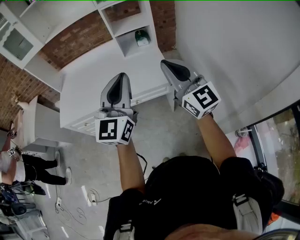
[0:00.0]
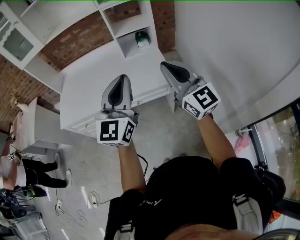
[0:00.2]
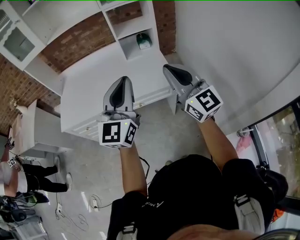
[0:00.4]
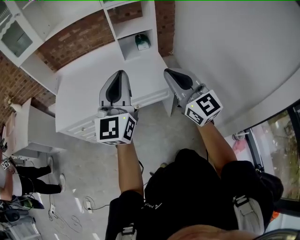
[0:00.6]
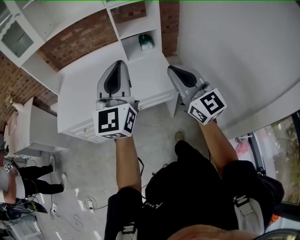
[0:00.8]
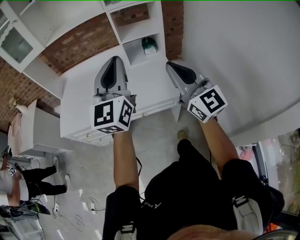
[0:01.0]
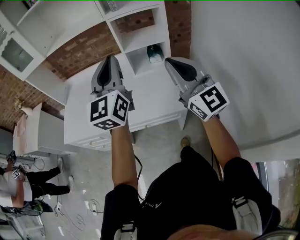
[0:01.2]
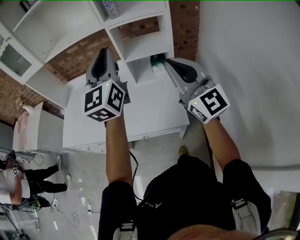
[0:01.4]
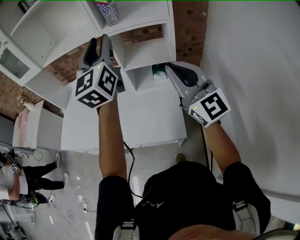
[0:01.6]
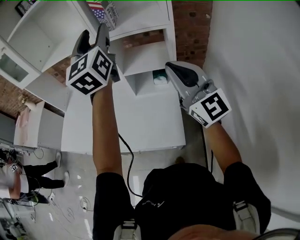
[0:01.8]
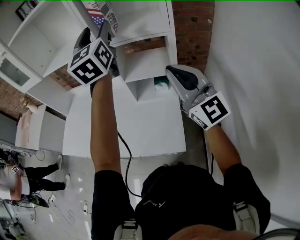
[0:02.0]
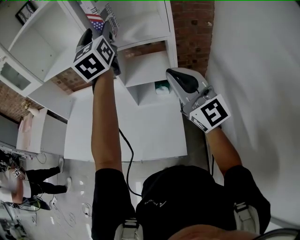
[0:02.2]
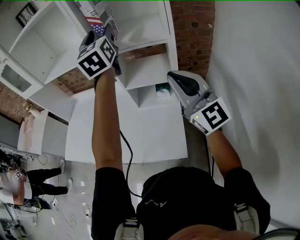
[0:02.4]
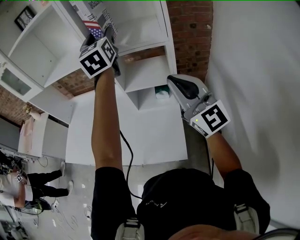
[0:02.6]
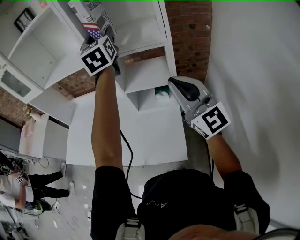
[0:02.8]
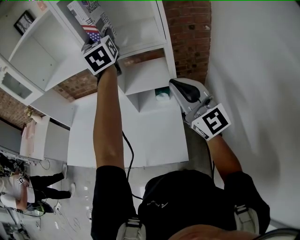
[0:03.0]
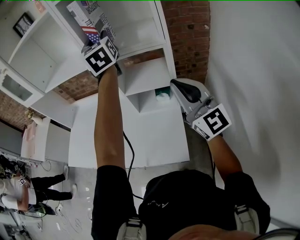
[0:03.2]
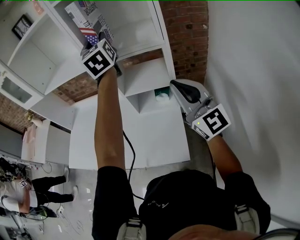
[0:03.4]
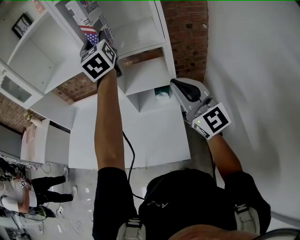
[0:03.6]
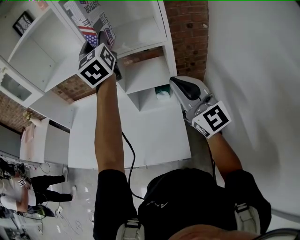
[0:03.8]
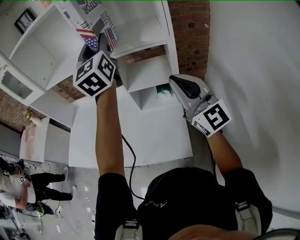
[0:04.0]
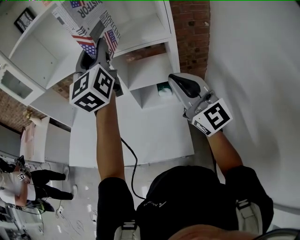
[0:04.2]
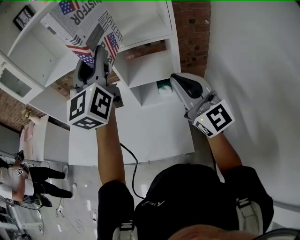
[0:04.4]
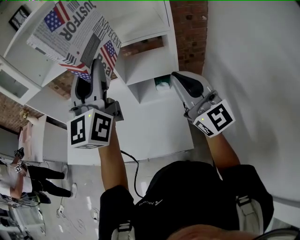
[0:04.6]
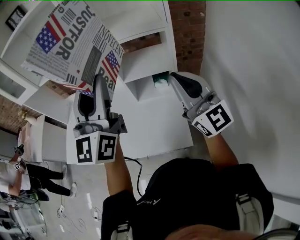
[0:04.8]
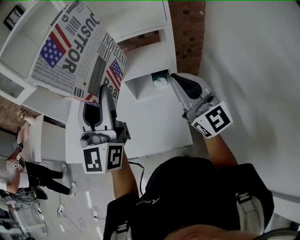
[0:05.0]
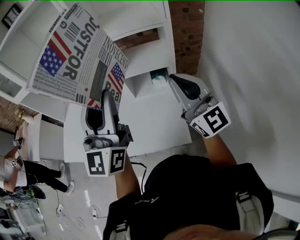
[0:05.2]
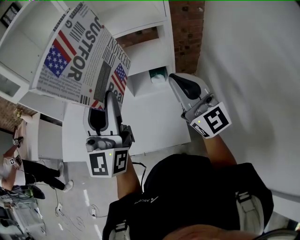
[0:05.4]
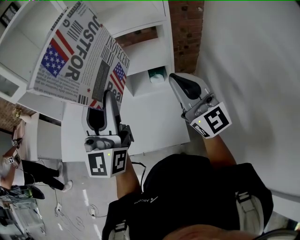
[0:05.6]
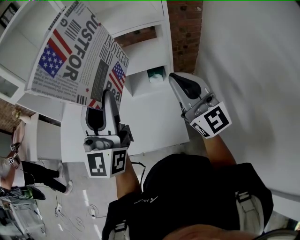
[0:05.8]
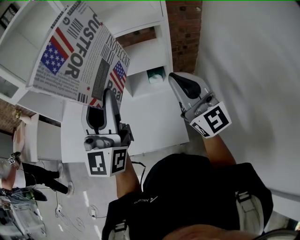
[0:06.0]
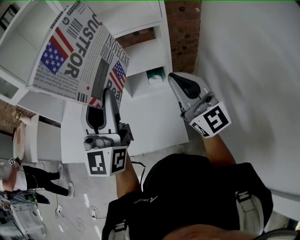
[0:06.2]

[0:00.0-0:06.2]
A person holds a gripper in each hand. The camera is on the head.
0:00.0 to 0:01.6: The grippers both shift forward by roughly 40 cm. The left gripper rotates approximately 20 degrees, and opens.
0:01.6 to 0:03.2: The right gripper goes approximately 10 cm to the right and forward. The left gripper goes roughly 20 cm forward and to the right, and opens, then closes again.
0:03.2 to 0:04.6: The left gripper travels backward by some 20 cm, and turns by about 30 degrees.
0:04.6 to 0:06.2: The left gripper moves downward and backward, some 10 cm.

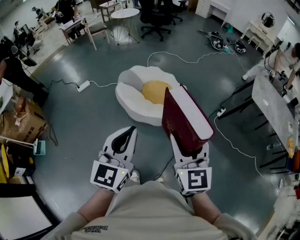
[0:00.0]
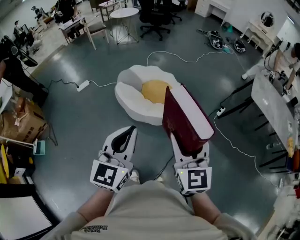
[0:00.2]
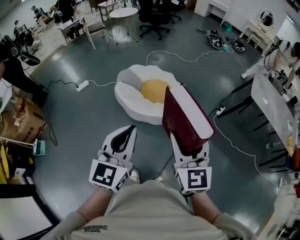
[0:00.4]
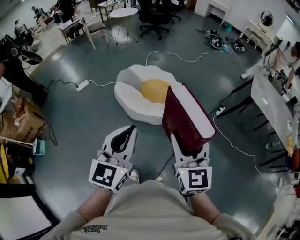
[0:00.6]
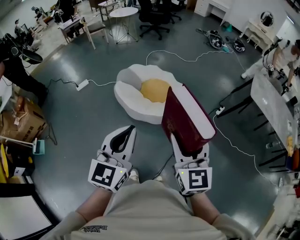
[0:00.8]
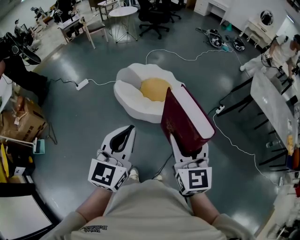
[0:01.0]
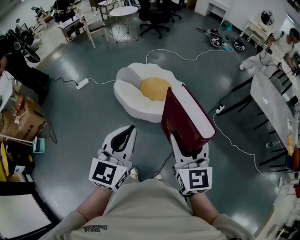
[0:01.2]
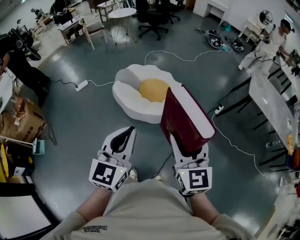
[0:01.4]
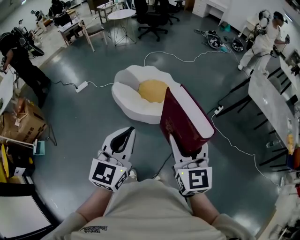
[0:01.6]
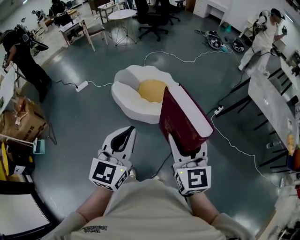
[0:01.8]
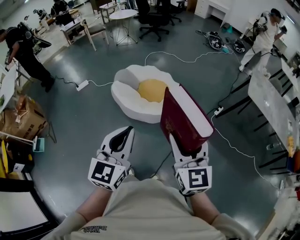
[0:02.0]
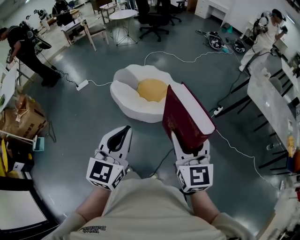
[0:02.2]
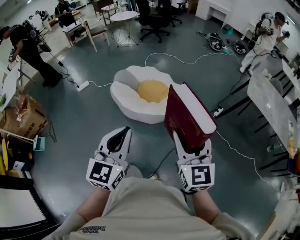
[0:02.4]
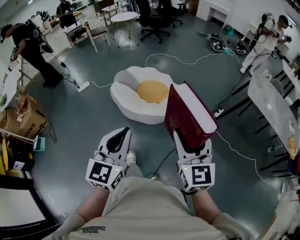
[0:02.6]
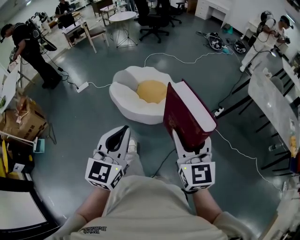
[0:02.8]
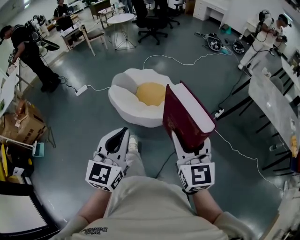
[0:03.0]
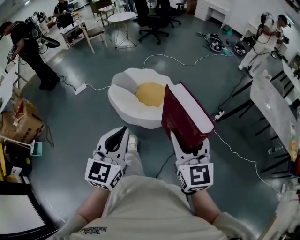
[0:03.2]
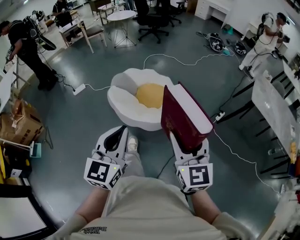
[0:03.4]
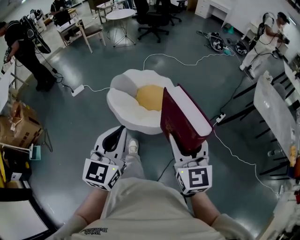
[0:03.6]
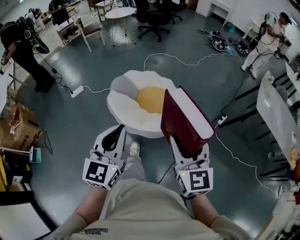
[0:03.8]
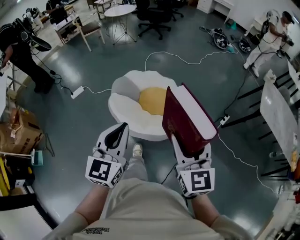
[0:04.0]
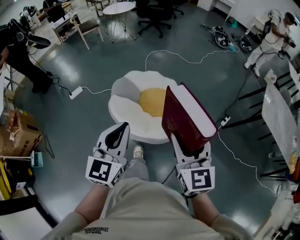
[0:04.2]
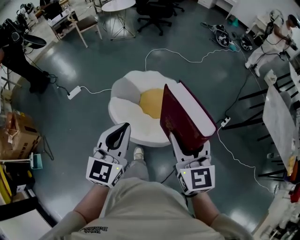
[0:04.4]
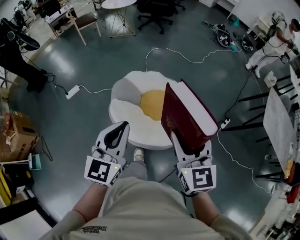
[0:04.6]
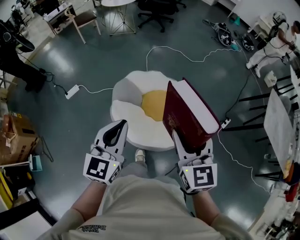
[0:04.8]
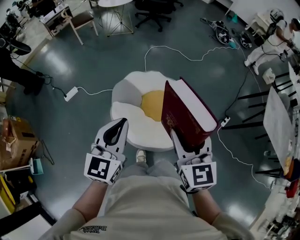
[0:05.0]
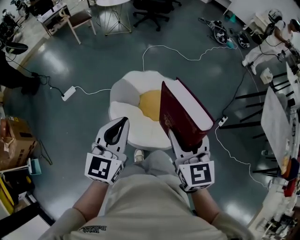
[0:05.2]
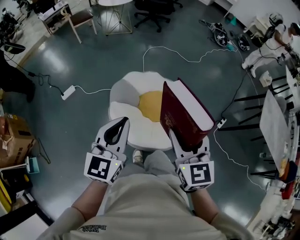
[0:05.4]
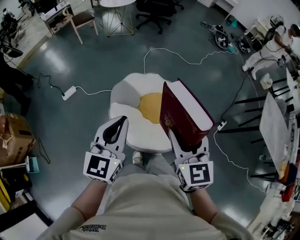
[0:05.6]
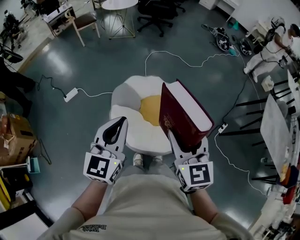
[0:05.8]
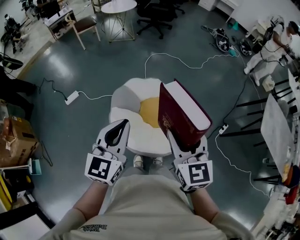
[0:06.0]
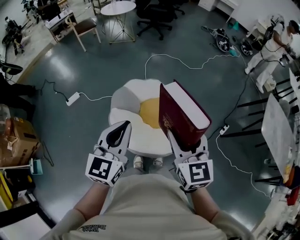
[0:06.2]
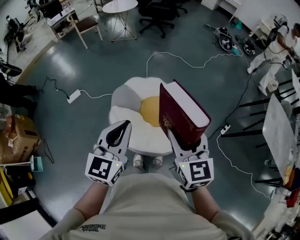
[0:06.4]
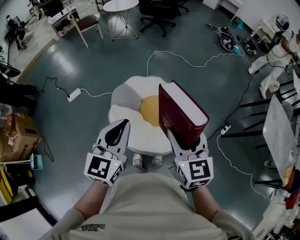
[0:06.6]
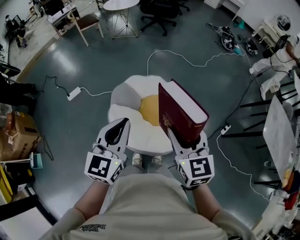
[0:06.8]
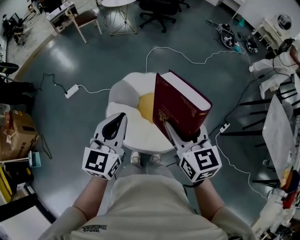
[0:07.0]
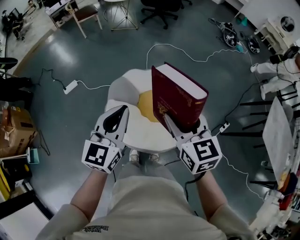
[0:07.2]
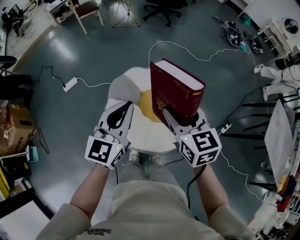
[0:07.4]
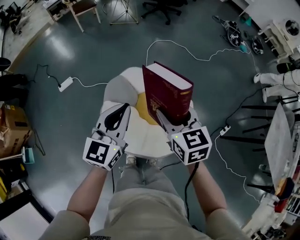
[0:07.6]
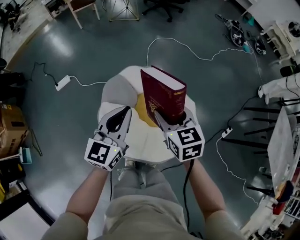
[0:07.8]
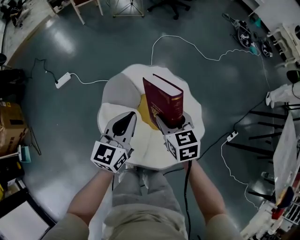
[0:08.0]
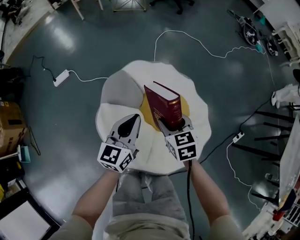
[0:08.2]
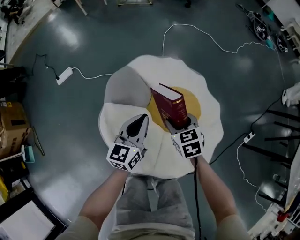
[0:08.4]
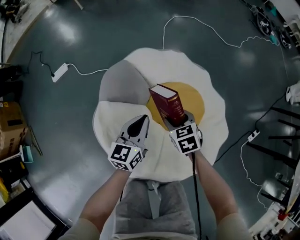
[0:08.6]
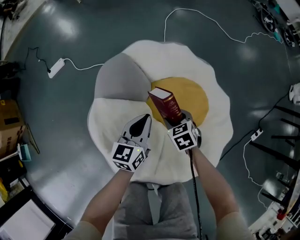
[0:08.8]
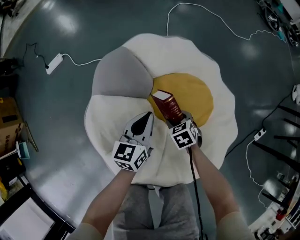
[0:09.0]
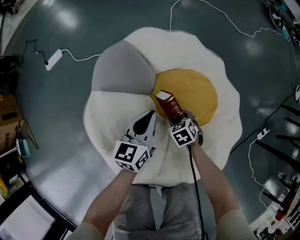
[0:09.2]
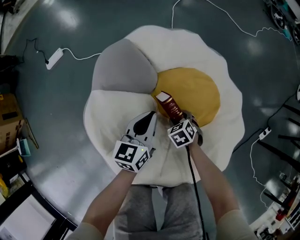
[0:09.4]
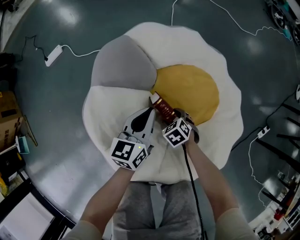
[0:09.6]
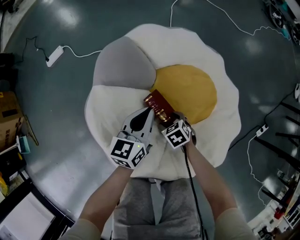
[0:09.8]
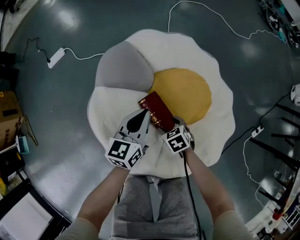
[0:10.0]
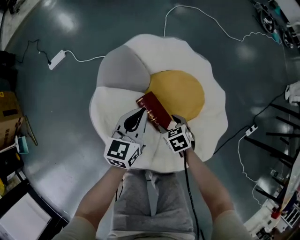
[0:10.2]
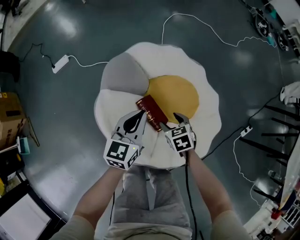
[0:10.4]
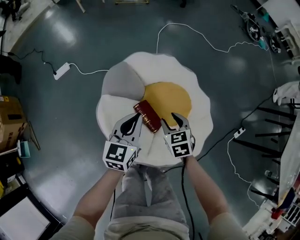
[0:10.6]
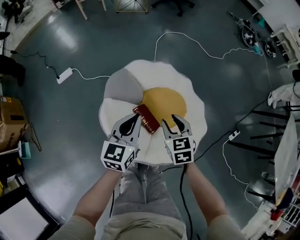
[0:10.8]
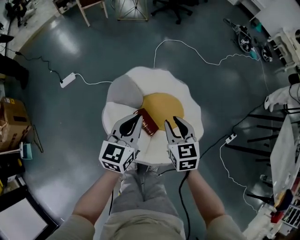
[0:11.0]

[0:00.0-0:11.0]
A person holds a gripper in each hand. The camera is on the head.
0:00.0 to 0:01.6: The right gripper shifts by approximately 5 cm.
0:01.6 to 0:03.2: The left gripper changes place by approximately 5 cm. Meanwhile the right gripper shifts by some 10 cm.
0:03.2 to 0:04.8: Both grippers are carried forward and to the left, roughly 50 cm.
0:04.8 to 0:06.2: The left gripper ends up roughly 5 cm from where it was.
0:06.2 to 0:07.8: Both grippers move downward and forward, about 25 cm. The right gripper turns by roughly 20 degrees.
0:07.8 to 0:09.4: The grippers both shift downward by about 60 cm. The left gripper turns by approximately 20 degrees. The right gripper tips its fingers downward by approximately 40 degrees.
0:09.4 to 0:11.0: Both grippers travel together upward, approximately 50 cm. The right gripper angles its fingers upward, by some 40 degrees, and closes its fingers.

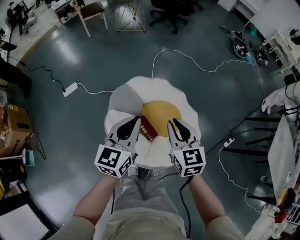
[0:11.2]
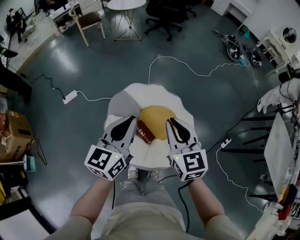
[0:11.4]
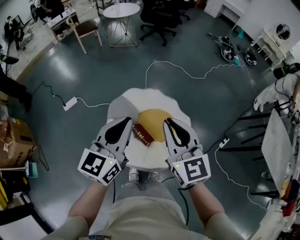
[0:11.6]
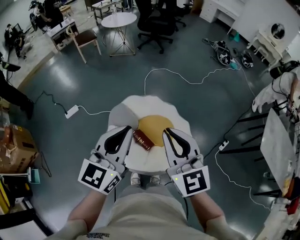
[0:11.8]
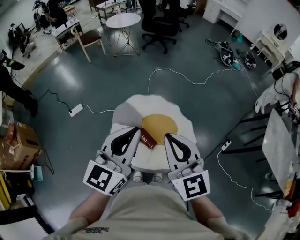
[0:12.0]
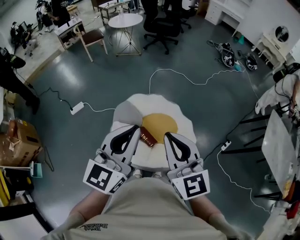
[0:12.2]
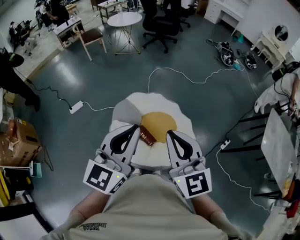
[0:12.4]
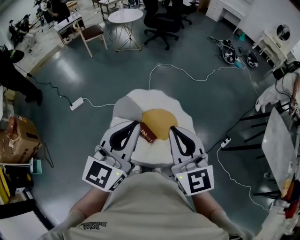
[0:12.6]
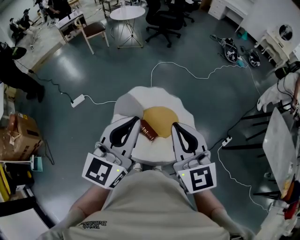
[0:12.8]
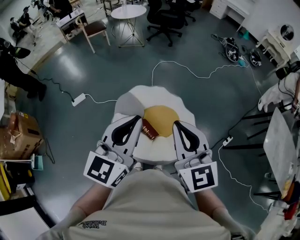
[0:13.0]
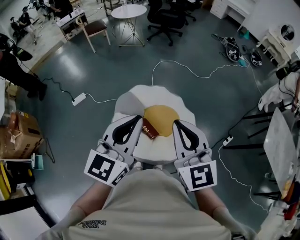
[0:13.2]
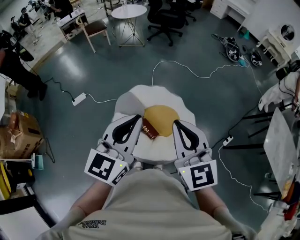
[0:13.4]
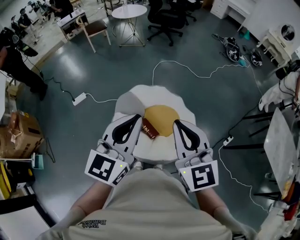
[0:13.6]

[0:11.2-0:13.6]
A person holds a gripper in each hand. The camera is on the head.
0:11.2 to 0:12.4: The two grippers go roughly 30 cm upward and backward. The right gripper rotates approximately 20 degrees.
0:12.4 to 0:13.6: The grippers make only small movements.

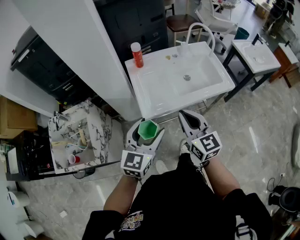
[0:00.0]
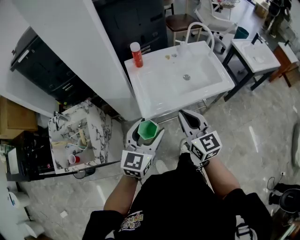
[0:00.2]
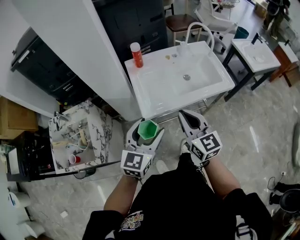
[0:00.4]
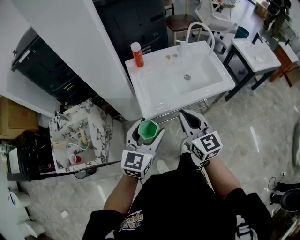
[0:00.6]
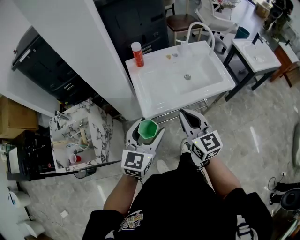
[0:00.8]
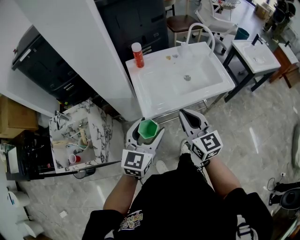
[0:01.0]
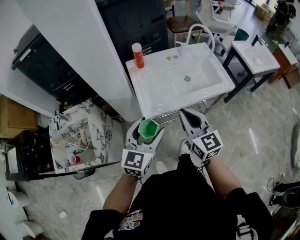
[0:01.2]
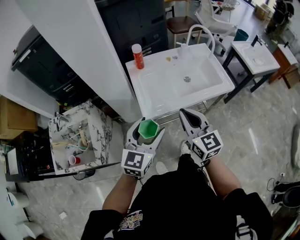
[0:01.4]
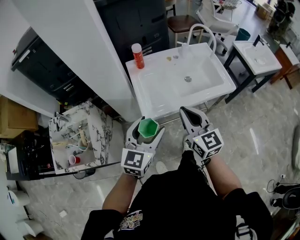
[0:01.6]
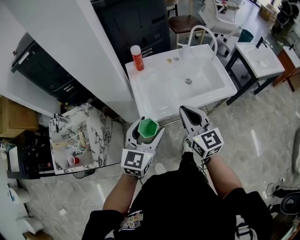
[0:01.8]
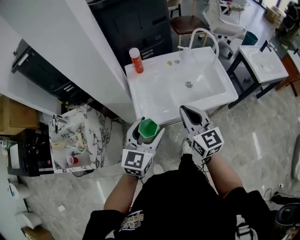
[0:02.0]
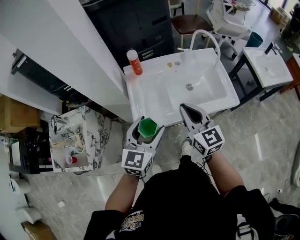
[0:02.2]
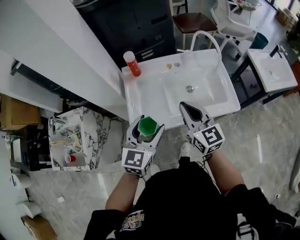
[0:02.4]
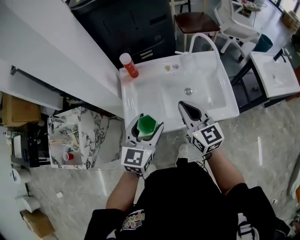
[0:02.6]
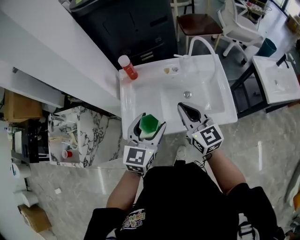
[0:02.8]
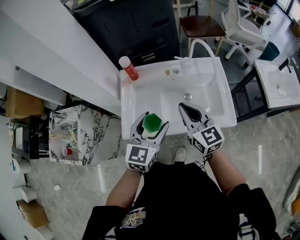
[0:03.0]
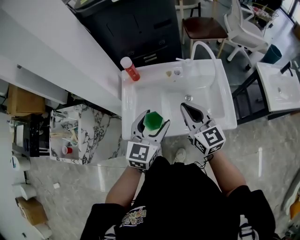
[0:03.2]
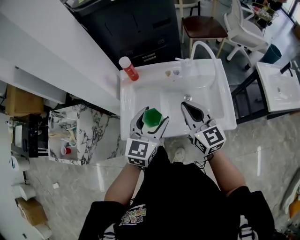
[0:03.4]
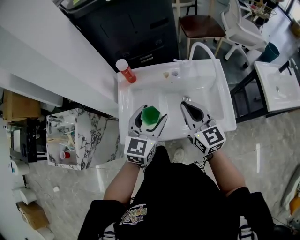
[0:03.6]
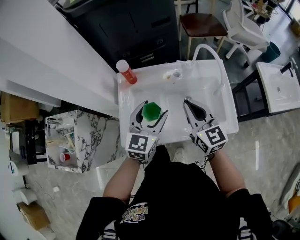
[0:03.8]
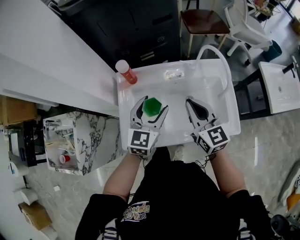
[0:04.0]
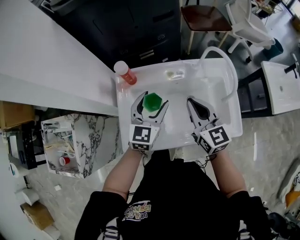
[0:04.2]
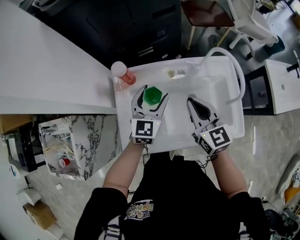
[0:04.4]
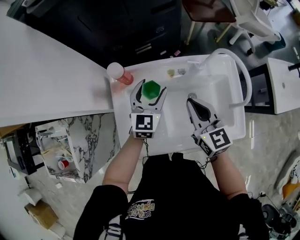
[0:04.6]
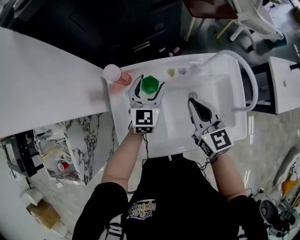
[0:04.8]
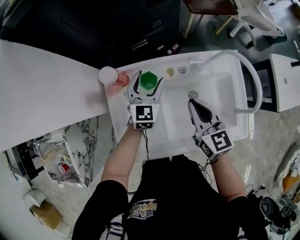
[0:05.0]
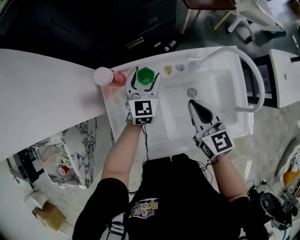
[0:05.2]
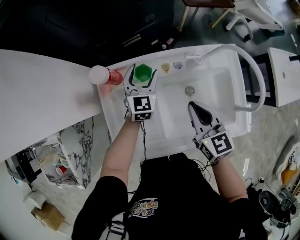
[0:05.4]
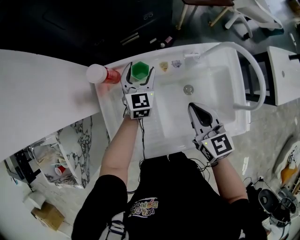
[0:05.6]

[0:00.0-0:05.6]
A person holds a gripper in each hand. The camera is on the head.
0:00.0 to 0:01.4: The two grippers keep their place.
0:01.4 to 0:02.8: The grippers both shift forward and to the right by approximately 25 cm.
0:02.8 to 0:04.2: The left gripper is displaced forward by roughly 20 cm. The right gripper goes about 10 cm forward.
0:04.2 to 0:05.6: The right gripper moves downward, some 10 cm. Meanwhile the left gripper travels forward and downward by some 25 cm.
